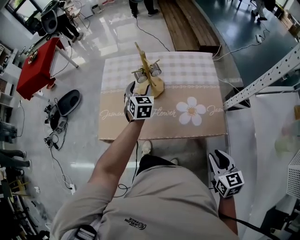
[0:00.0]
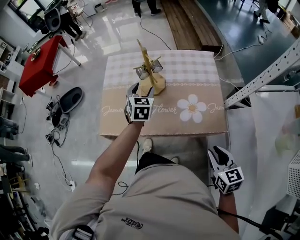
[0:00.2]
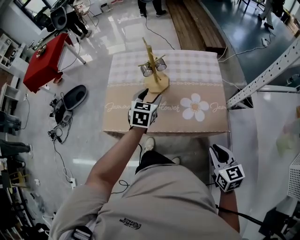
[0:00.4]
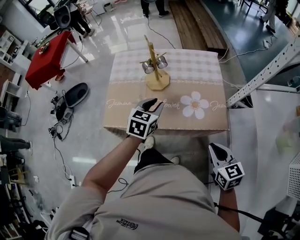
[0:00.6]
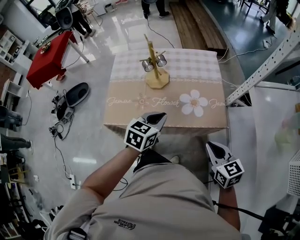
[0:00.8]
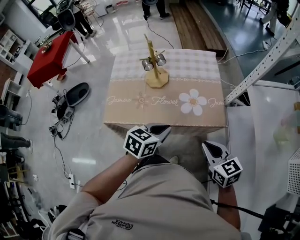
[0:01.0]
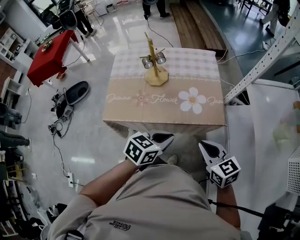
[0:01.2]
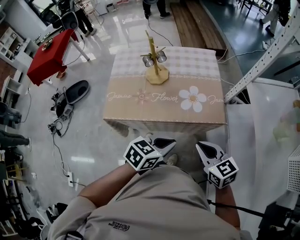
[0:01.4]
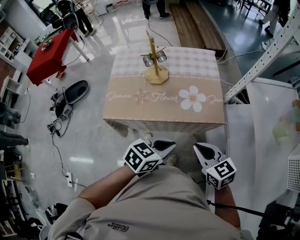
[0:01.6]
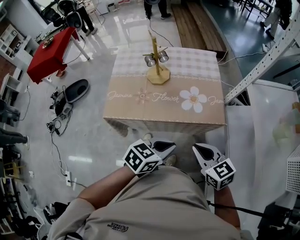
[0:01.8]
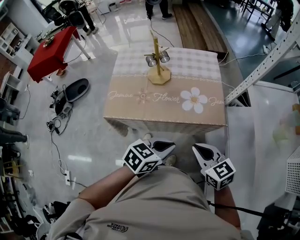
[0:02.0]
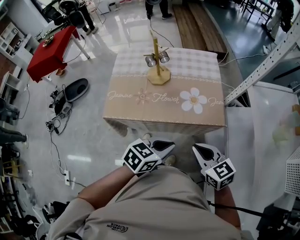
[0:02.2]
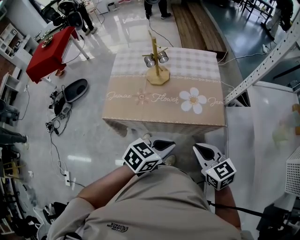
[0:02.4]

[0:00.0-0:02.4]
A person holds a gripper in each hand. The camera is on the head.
0:00.0 to 0:01.2: The left gripper shifts some 40 cm backward and to the right, turns by some 50 degrees, and closes. The right gripper travels to the left by roughly 5 cm, and closes.
0:01.2 to 0:02.4: The grippers make only small movements.

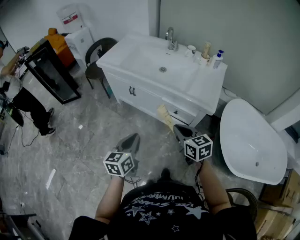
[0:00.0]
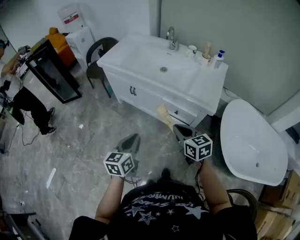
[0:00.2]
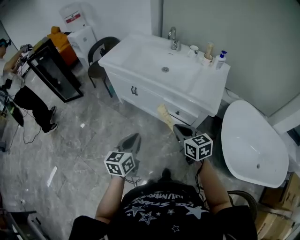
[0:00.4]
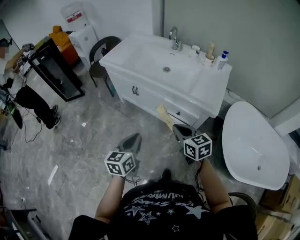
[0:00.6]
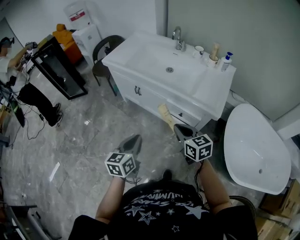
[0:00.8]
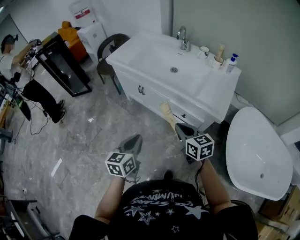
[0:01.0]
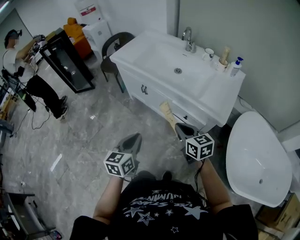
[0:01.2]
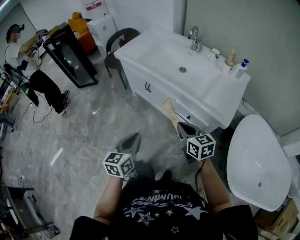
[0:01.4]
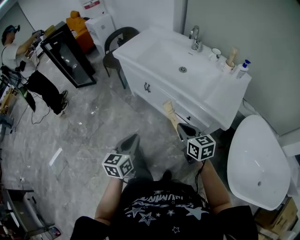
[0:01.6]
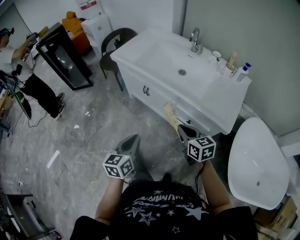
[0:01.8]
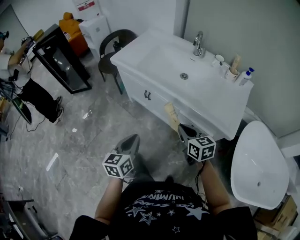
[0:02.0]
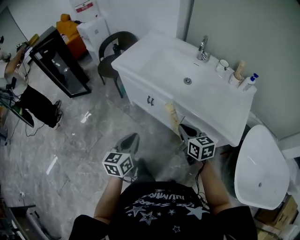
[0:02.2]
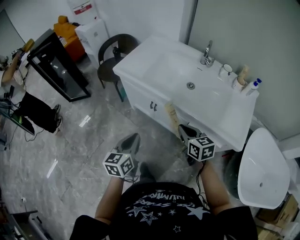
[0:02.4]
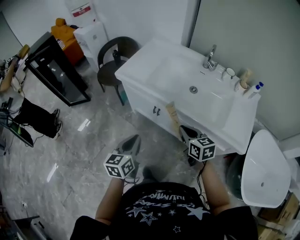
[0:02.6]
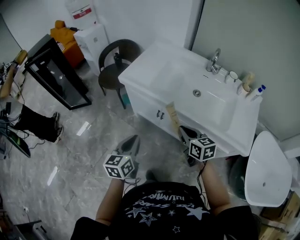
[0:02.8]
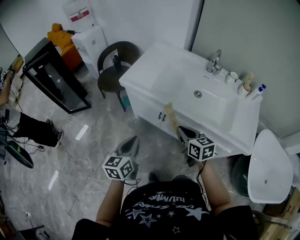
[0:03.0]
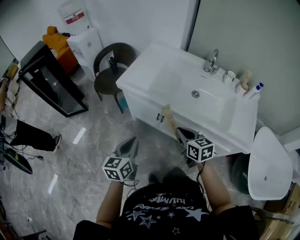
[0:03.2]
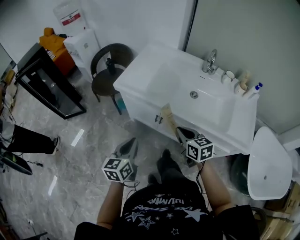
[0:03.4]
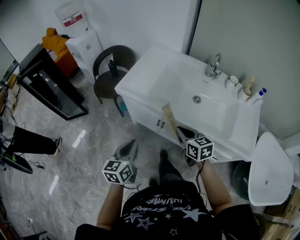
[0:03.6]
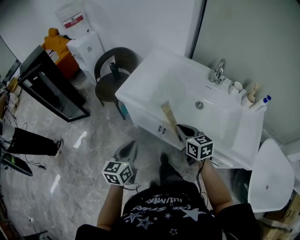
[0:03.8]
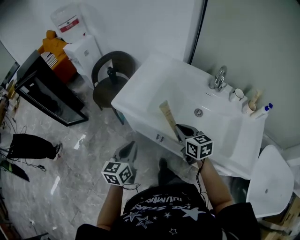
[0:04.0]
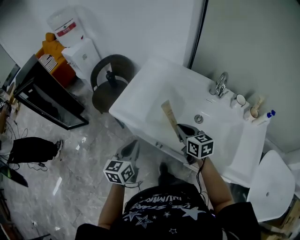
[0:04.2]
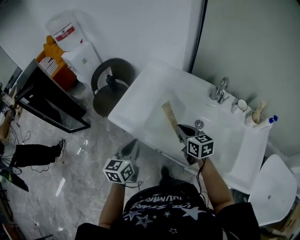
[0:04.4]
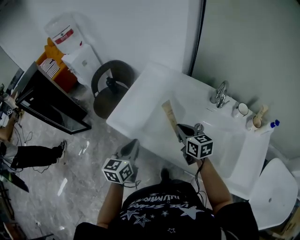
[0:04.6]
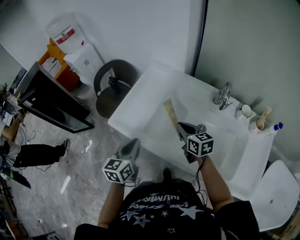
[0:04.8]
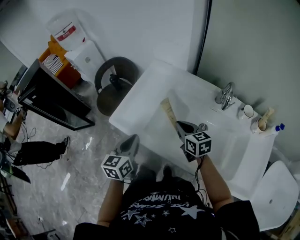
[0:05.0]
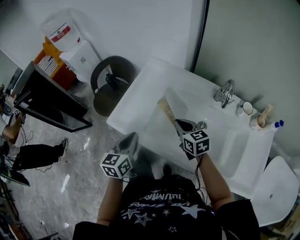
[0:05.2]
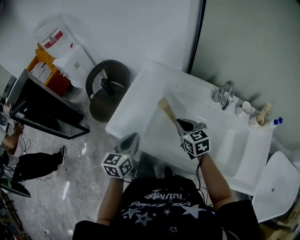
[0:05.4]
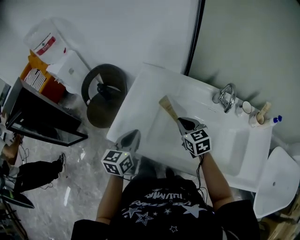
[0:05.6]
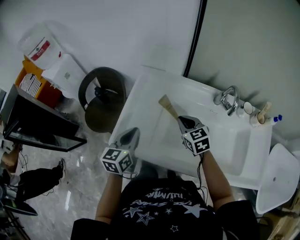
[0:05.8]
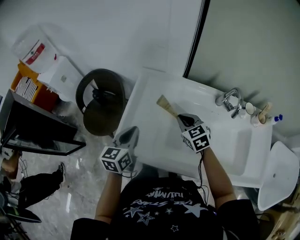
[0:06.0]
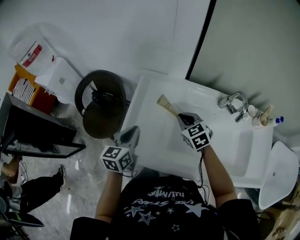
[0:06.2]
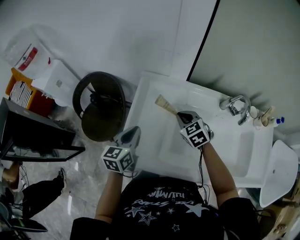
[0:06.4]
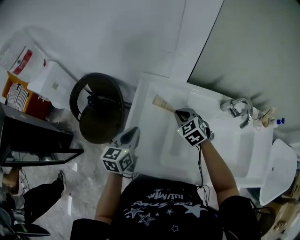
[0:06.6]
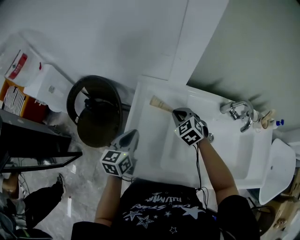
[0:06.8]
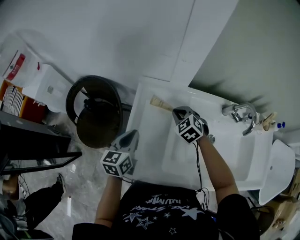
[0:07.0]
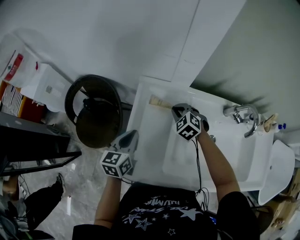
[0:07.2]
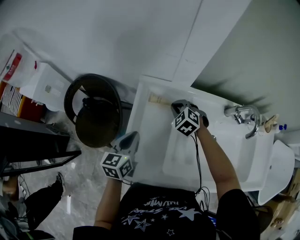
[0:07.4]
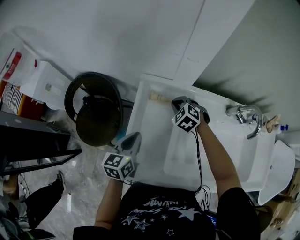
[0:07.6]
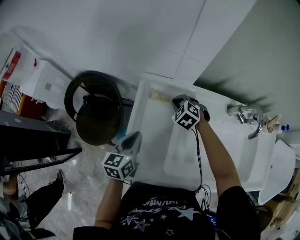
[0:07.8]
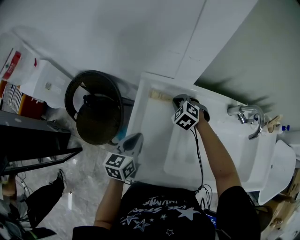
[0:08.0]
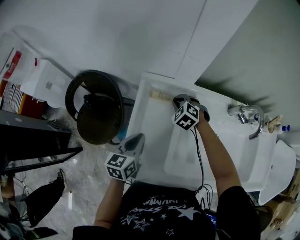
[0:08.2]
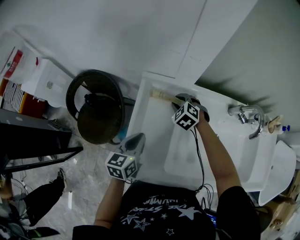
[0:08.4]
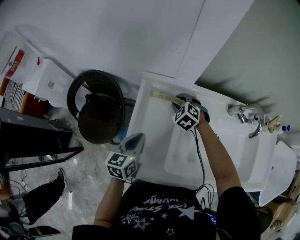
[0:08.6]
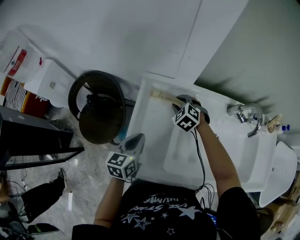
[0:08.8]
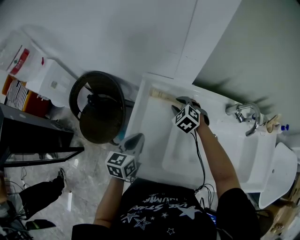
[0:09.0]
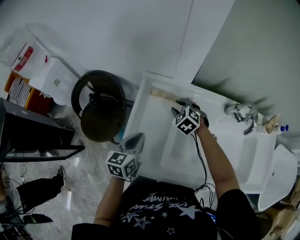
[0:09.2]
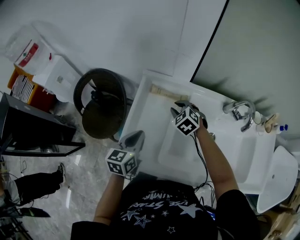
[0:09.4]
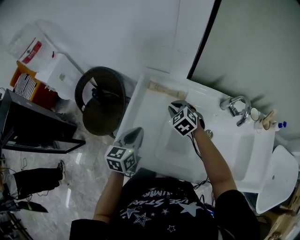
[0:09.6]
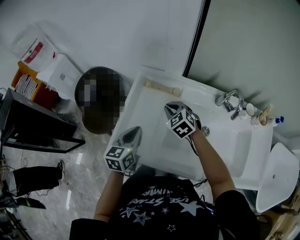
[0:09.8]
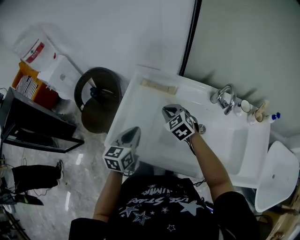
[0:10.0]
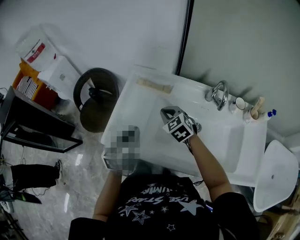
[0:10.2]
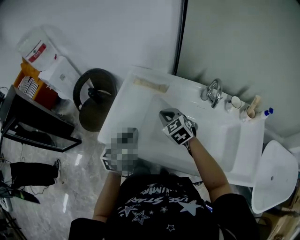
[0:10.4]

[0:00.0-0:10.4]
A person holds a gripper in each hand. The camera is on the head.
0:00.0 to 0:01.4: The right gripper moves forward, some 5 cm.
0:01.4 to 0:03.0: Both grippers travel together forward and to the left, about 30 cm.
0:03.0 to 0:04.4: The two grippers go about 25 cm forward.
0:04.4 to 0:06.0: The two grippers go about 20 cm forward. The right gripper changes its angle by approximately 30 degrees.
0:06.0 to 0:07.4: The left gripper is displaced forward and downward by roughly 10 cm; the right gripper travels forward, downward and to the left by roughly 20 cm, and swivels some 30 degrees.
0:07.4 to 0:09.0: The right gripper opens.
0:09.0 to 0:10.4: The right gripper shifts roughly 20 cm backward and upward, turns by some 20 degrees, and closes. Meanwhile the left gripper goes about 15 cm backward, to the right and upward.

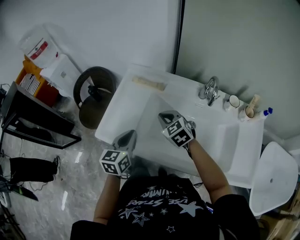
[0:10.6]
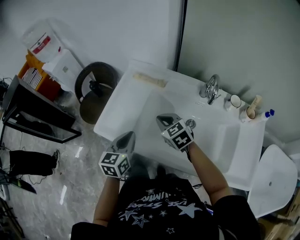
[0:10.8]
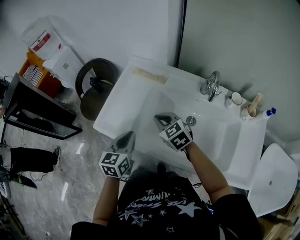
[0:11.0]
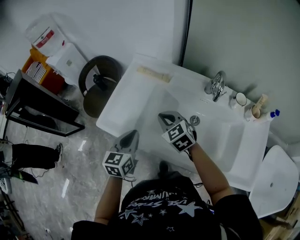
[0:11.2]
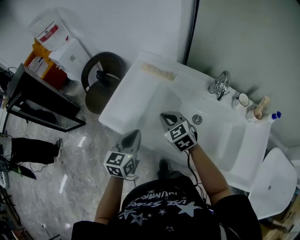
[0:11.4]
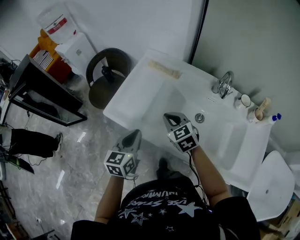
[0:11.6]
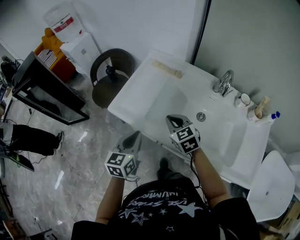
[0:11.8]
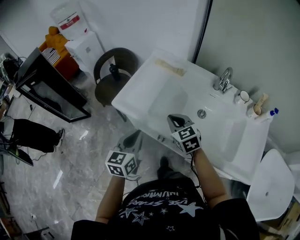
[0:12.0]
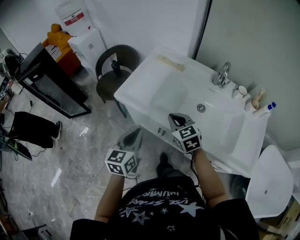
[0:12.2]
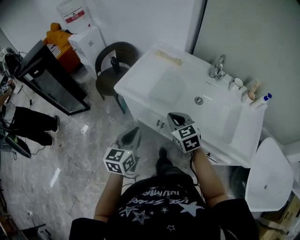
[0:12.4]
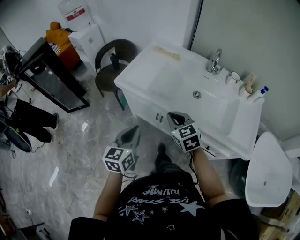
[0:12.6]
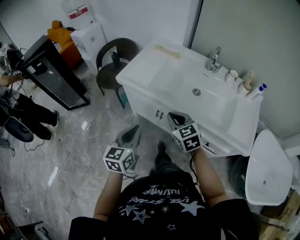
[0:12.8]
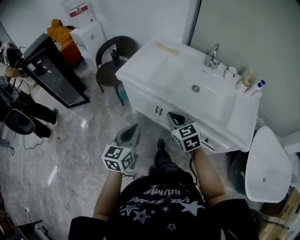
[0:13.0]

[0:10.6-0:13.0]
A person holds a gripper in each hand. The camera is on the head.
0:10.6 to 0:11.8: The grippers both shift backward by some 10 cm.
0:11.8 to 0:13.0: The two grippers go roughly 25 cm backward.

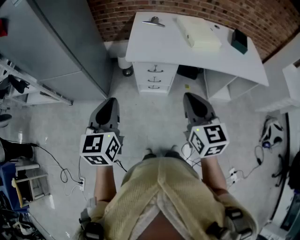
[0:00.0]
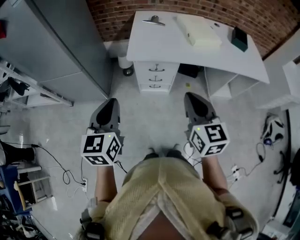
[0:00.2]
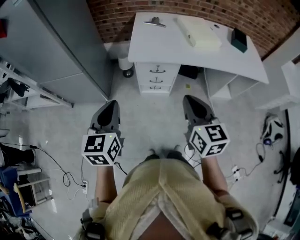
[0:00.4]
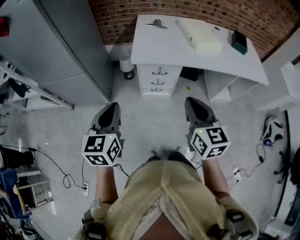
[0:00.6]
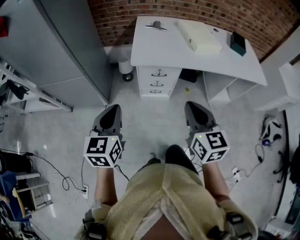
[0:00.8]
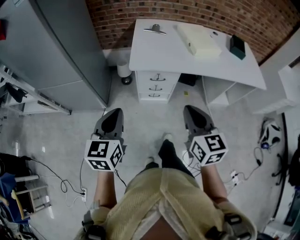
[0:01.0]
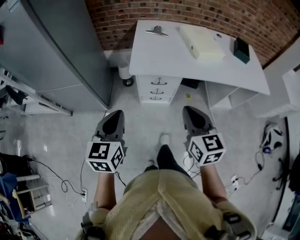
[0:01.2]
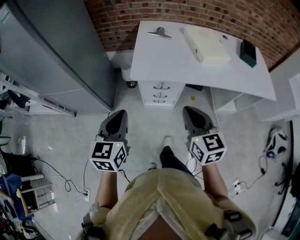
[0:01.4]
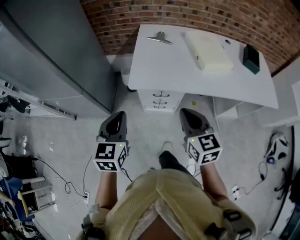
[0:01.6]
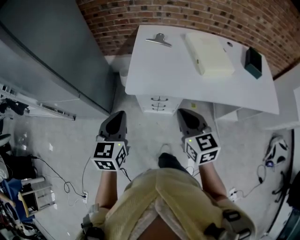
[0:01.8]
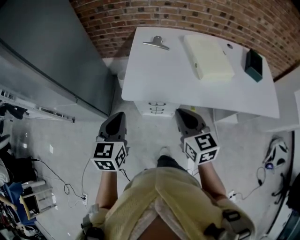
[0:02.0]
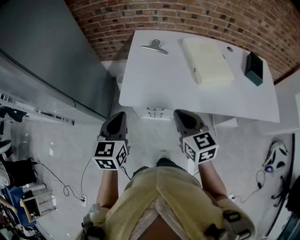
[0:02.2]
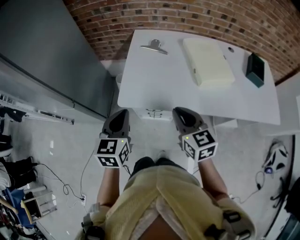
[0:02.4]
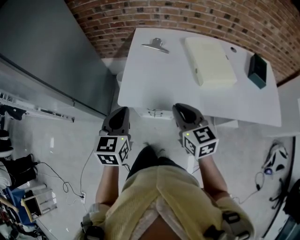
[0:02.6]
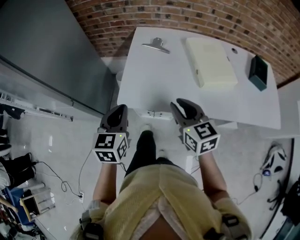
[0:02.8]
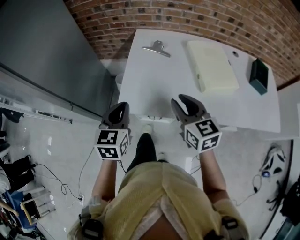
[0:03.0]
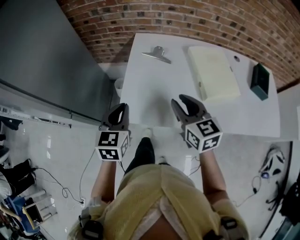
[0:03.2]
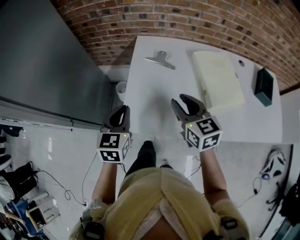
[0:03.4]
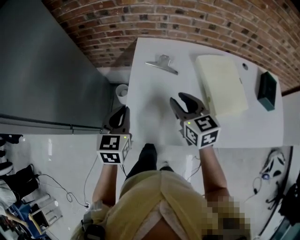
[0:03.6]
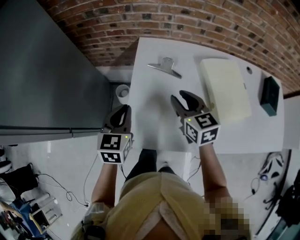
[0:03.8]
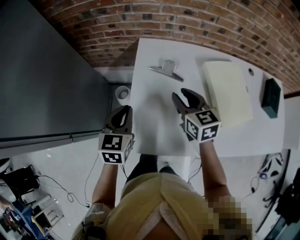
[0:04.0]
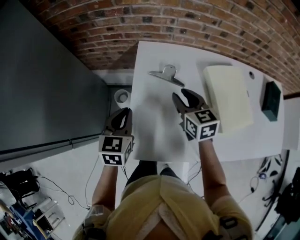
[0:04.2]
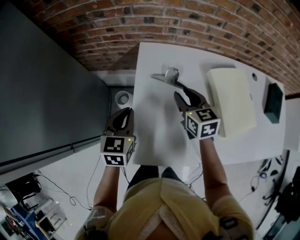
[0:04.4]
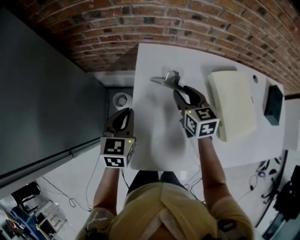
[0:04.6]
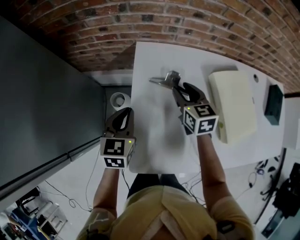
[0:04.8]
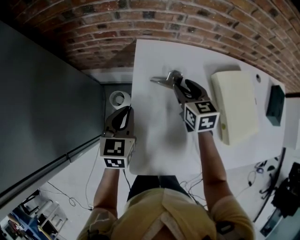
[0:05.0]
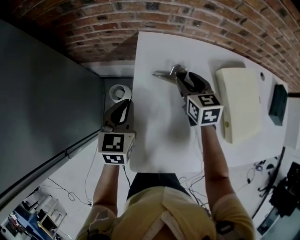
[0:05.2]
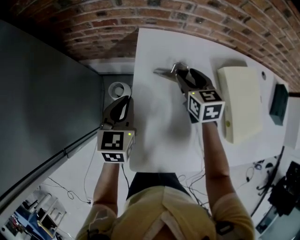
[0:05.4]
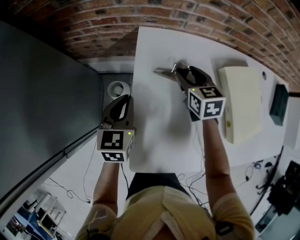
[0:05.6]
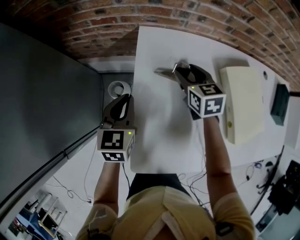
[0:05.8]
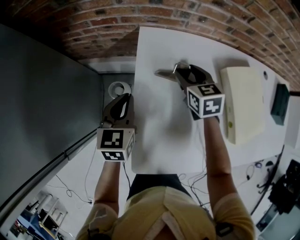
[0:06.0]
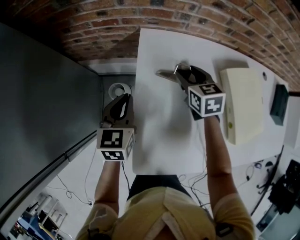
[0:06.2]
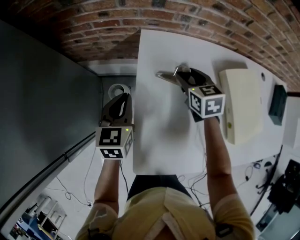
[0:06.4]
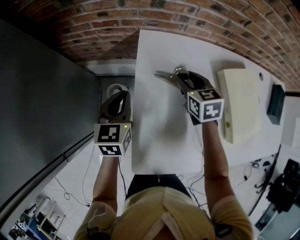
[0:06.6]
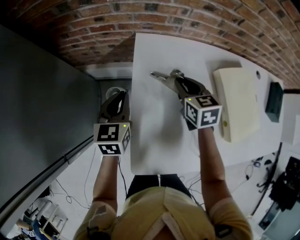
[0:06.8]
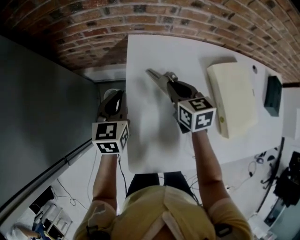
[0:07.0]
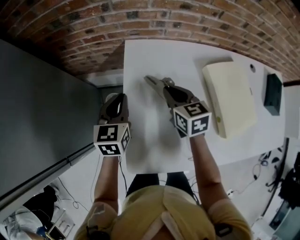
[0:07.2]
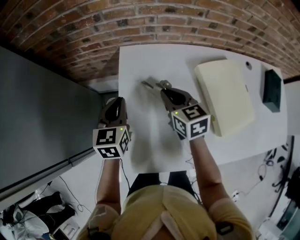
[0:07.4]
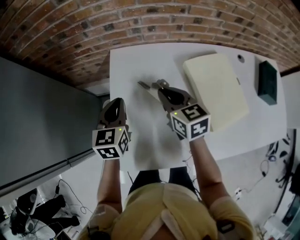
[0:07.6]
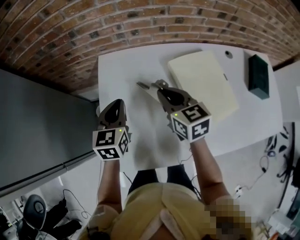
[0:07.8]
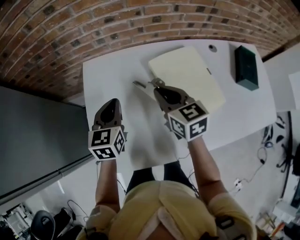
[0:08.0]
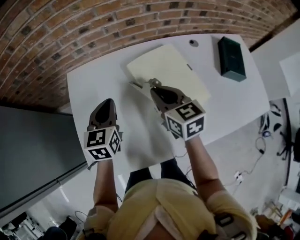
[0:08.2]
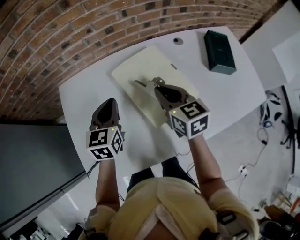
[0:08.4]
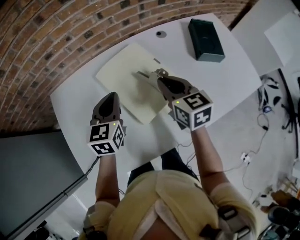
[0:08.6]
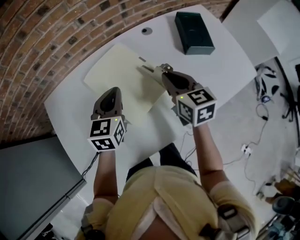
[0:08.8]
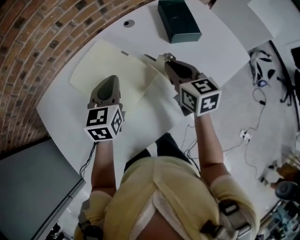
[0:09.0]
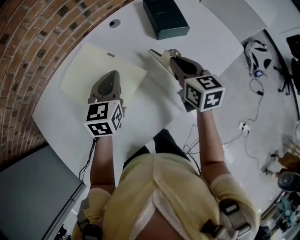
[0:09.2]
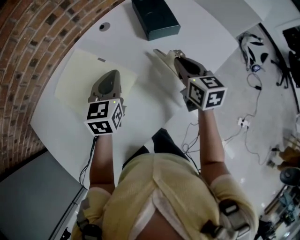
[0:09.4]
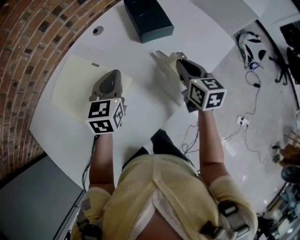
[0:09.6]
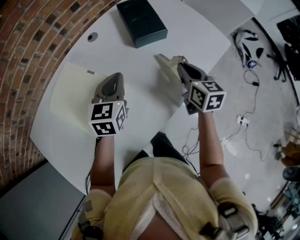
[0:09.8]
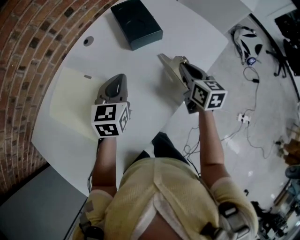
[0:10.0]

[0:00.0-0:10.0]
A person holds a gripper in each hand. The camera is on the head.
0:00.0 to 0:01.4: The grippers both shift forward by about 10 cm.
0:01.4 to 0:02.8: The right gripper moves forward, roughly 20 cm. The left gripper moves forward and to the right, about 20 cm.
0:02.8 to 0:04.2: The two grippers go roughly 30 cm forward.
0:04.2 to 0:05.8: Both grippers move forward and downward, about 15 cm.
0:05.8 to 0:07.2: The right gripper heads backward, covering some 5 cm, and closes up.
0:07.2 to 0:08.6: Both grippers travel together to the right, roughly 40 cm. The left gripper changes its angle by roughly 20 degrees, while the right gripper rotates some 20 degrees.
0:08.6 to 0:10.0: The left gripper moves about 30 cm, and rotates about 30 degrees. Meanwhile the right gripper ends up roughly 40 cm from where it was, and turns by about 40 degrees.
